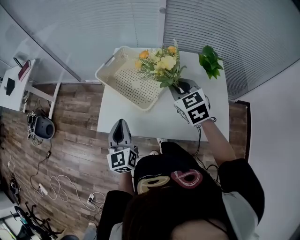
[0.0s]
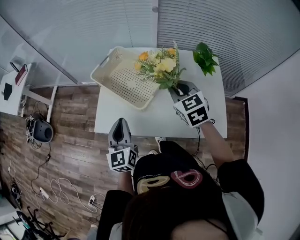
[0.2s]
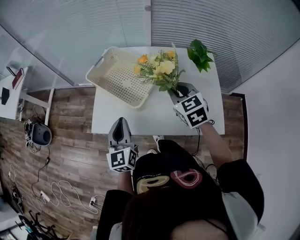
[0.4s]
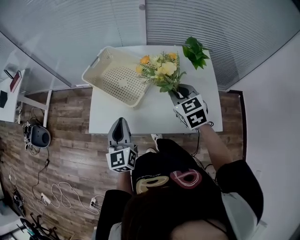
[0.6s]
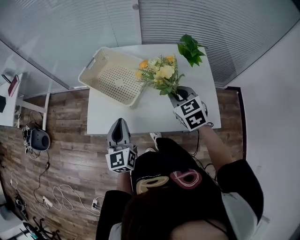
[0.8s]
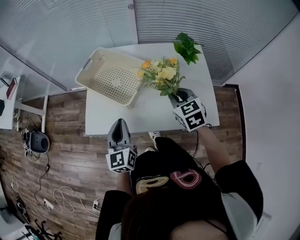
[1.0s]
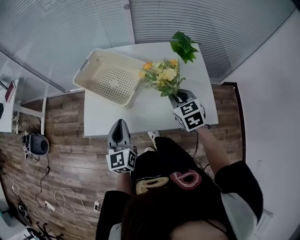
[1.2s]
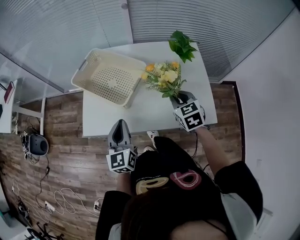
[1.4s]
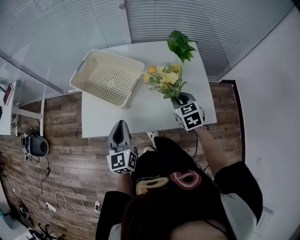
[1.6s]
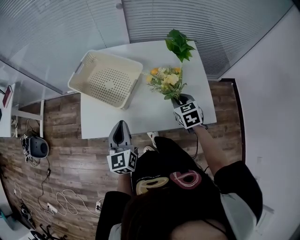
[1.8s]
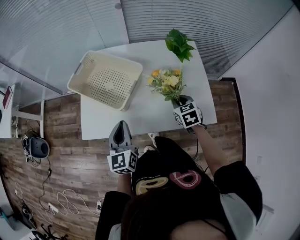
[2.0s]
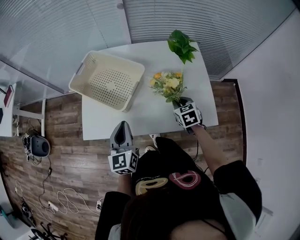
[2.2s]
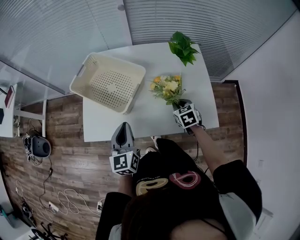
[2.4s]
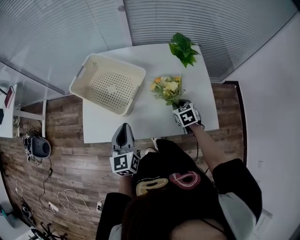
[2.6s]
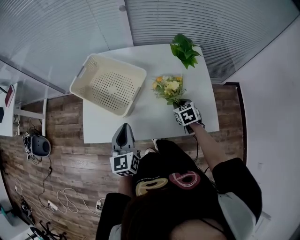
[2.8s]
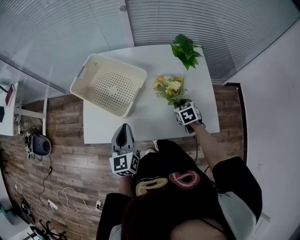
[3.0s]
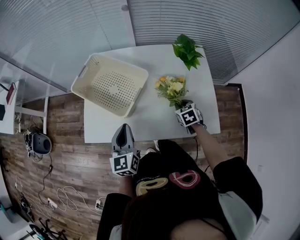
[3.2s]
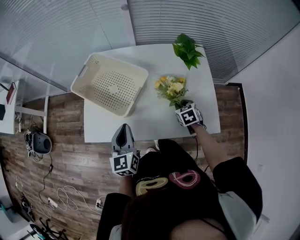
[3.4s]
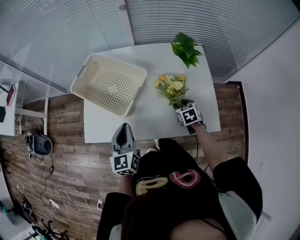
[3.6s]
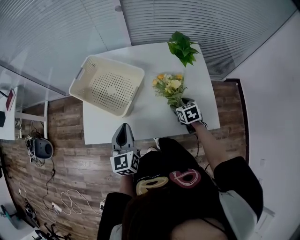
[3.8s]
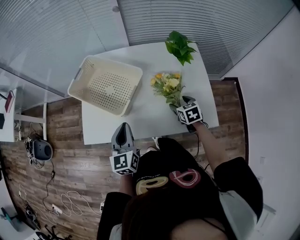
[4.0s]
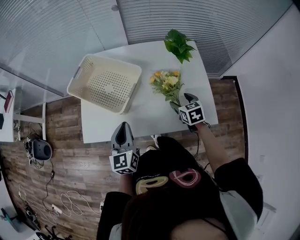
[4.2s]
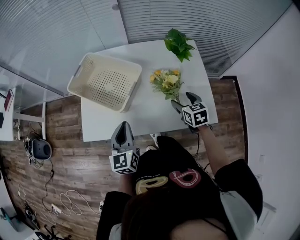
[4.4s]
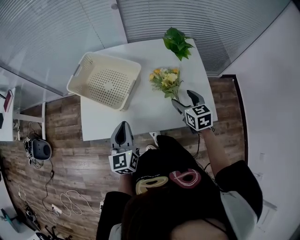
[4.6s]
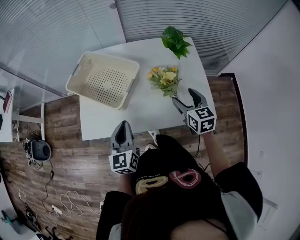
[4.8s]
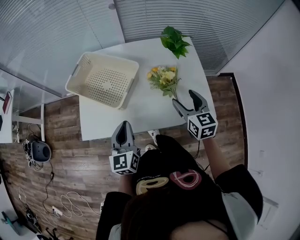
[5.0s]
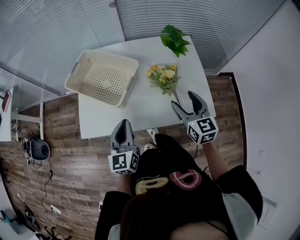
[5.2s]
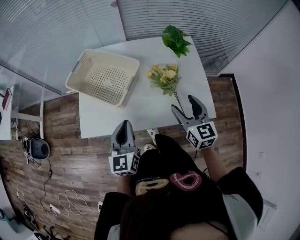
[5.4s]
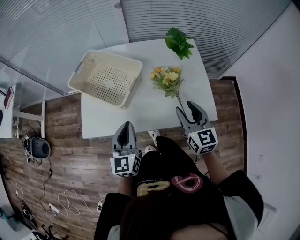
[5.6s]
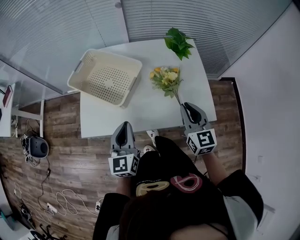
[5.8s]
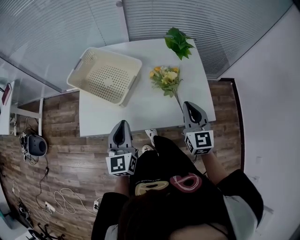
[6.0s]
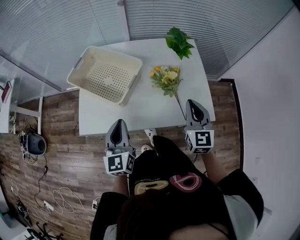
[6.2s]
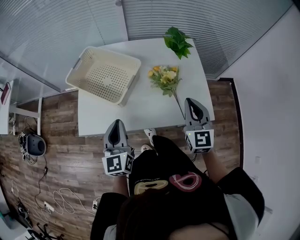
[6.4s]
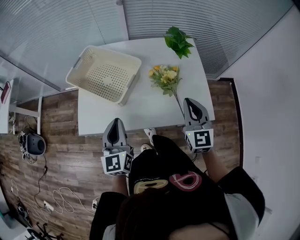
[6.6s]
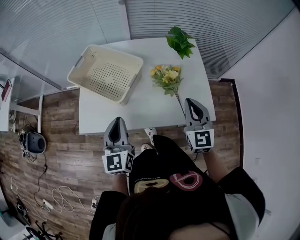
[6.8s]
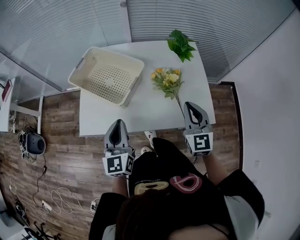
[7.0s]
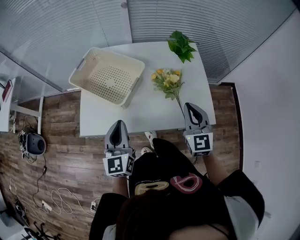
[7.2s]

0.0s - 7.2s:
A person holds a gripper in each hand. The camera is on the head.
0.0s - 1.4s: The left gripper is displaced to the right by approximately 10 cm. Meanwhile the right gripper is displaced to the right, backward and downward by roughly 20 cm.
1.4s - 2.8s: The right gripper shifts approximately 15 cm downward.
2.8s - 4.4s: The right gripper travels upward by some 5 cm, and opens up.
4.4s - 5.8s: The right gripper heads upward and backward, covering some 15 cm, turns by about 30 degrees, and closes its fingers.
5.8s - 7.2s: The grippers move only a little.

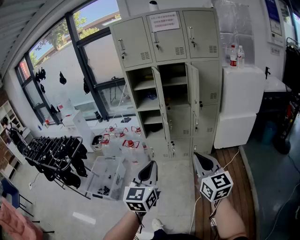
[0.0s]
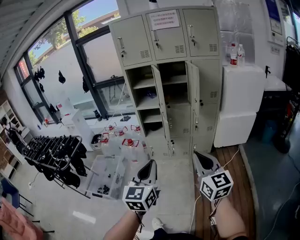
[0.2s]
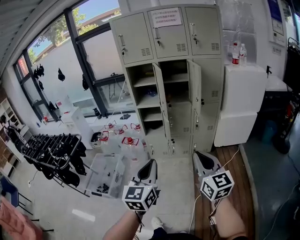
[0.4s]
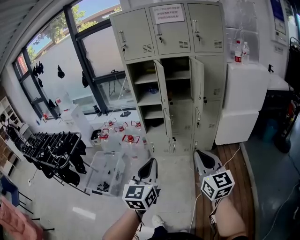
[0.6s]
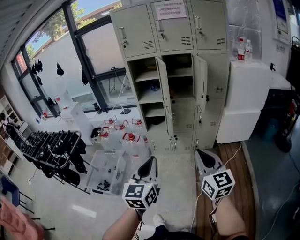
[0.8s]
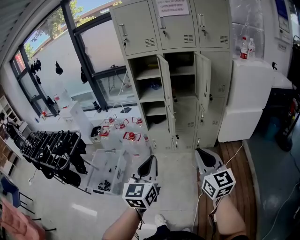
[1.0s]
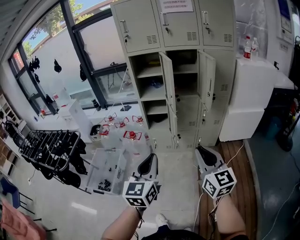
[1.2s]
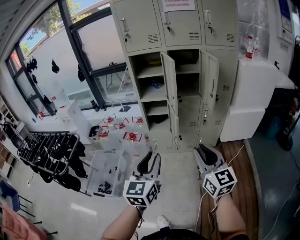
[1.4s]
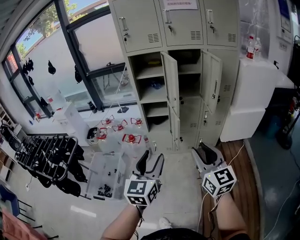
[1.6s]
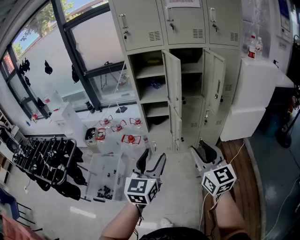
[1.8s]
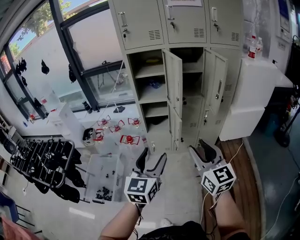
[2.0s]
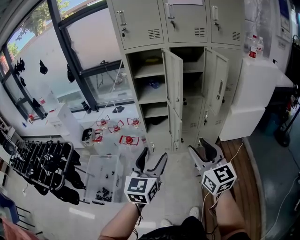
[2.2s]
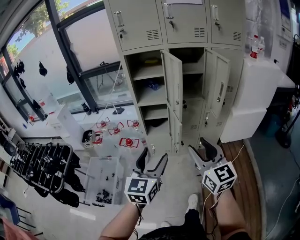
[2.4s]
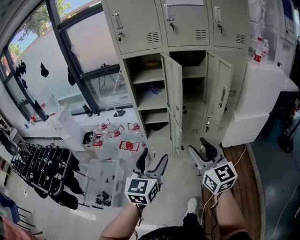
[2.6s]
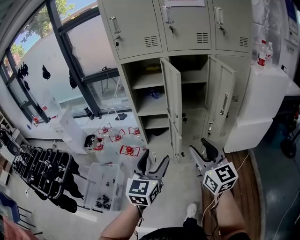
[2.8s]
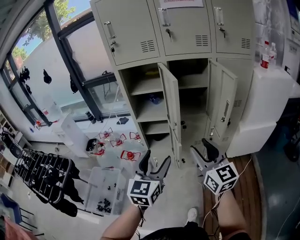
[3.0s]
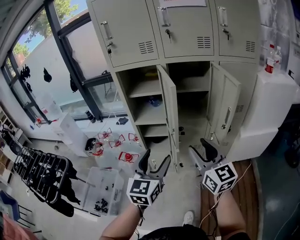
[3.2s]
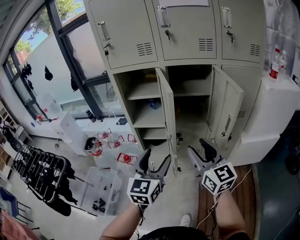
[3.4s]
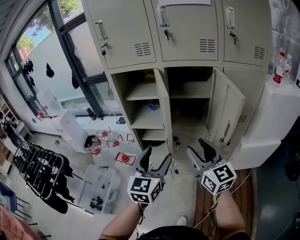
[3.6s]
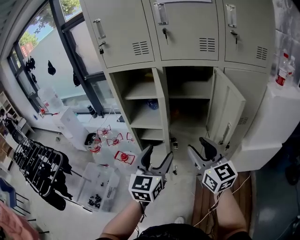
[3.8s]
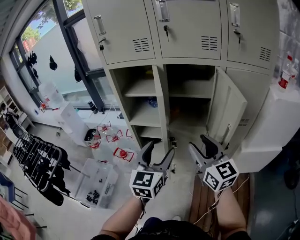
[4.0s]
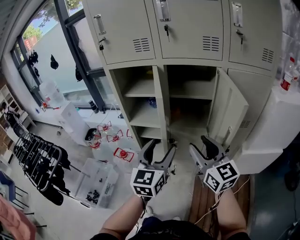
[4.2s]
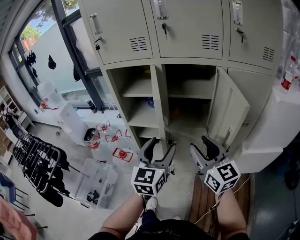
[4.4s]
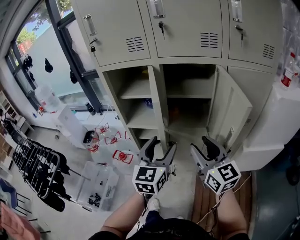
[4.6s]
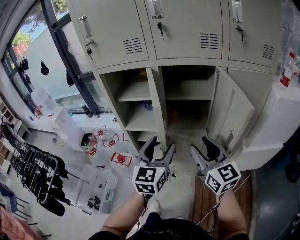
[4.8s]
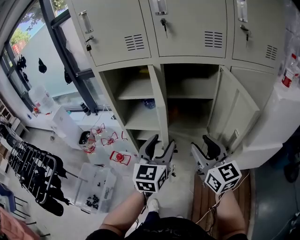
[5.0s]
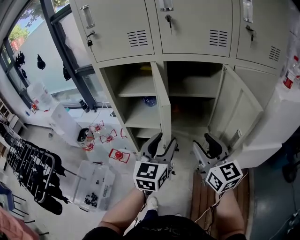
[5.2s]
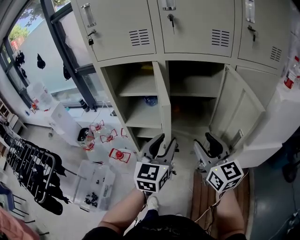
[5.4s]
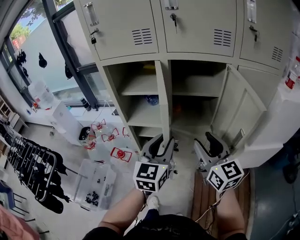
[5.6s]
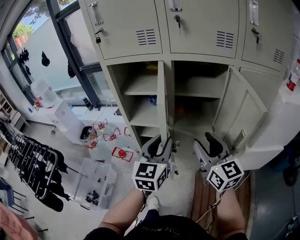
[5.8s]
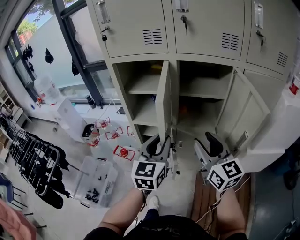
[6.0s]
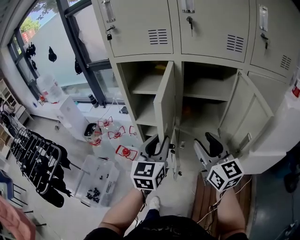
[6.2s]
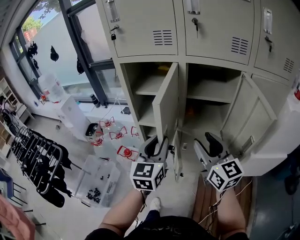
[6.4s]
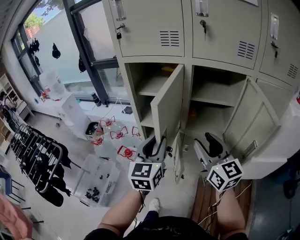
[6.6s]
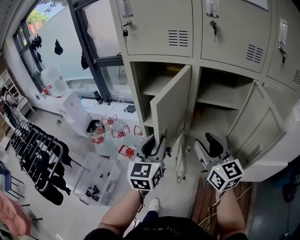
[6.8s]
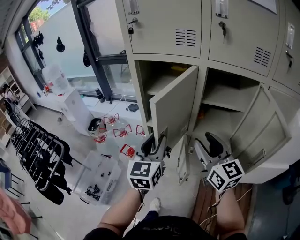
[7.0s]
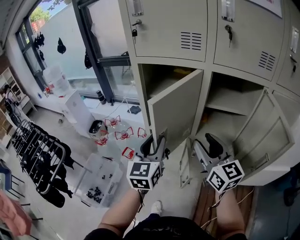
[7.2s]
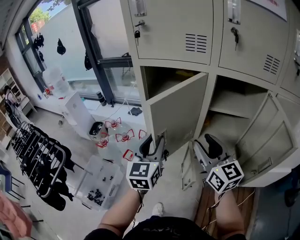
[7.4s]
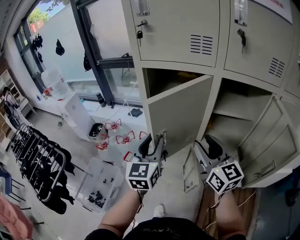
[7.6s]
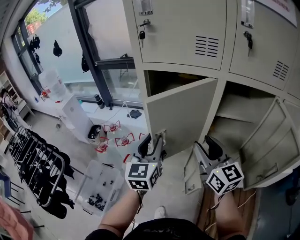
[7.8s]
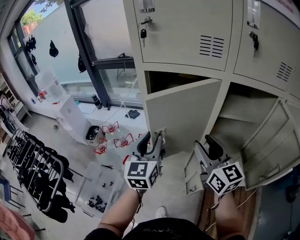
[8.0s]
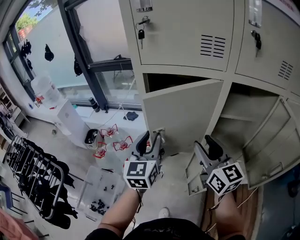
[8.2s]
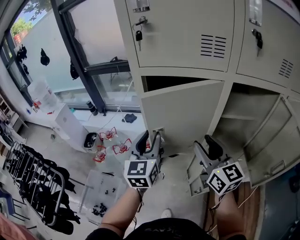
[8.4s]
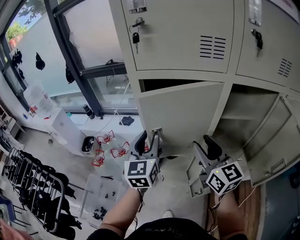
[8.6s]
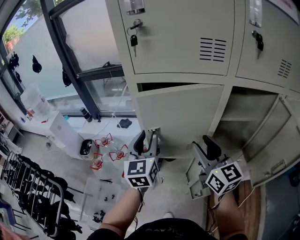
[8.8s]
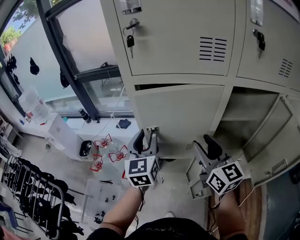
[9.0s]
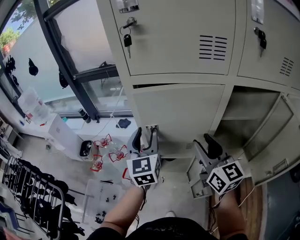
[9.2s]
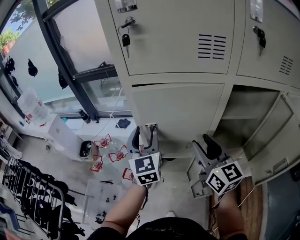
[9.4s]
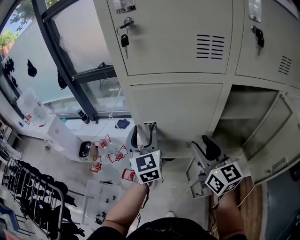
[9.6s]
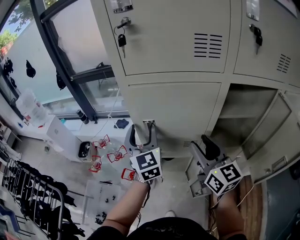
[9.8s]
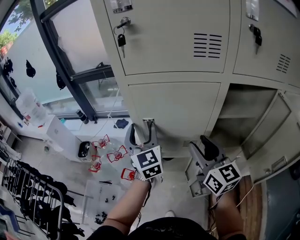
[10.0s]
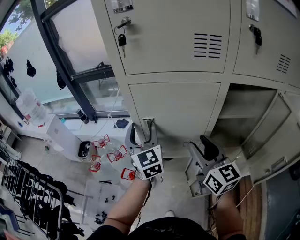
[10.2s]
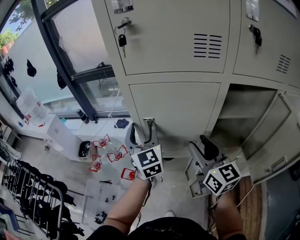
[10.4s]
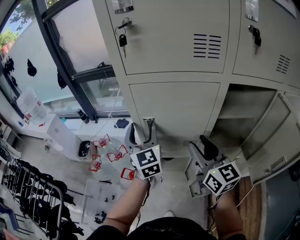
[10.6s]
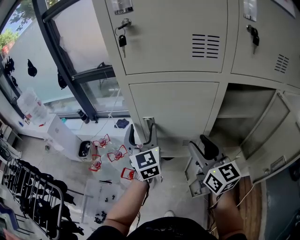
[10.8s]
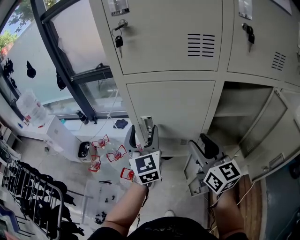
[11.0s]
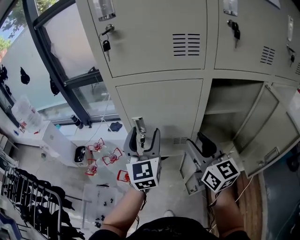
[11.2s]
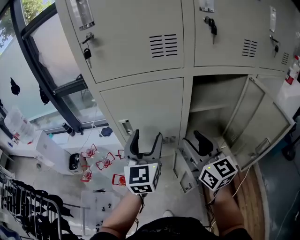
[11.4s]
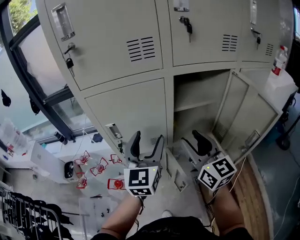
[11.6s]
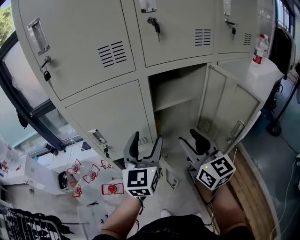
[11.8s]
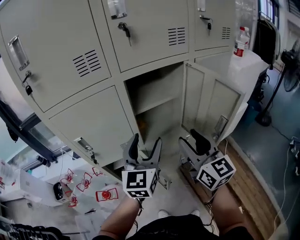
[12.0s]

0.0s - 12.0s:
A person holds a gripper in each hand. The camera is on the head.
0.0s - 1.6s: The two grippers go about 20 cm forward and to the left. The right gripper opens, while the left gripper opens its fingers.
1.6s - 3.0s: The two grippers go some 20 cm forward.
3.0s - 4.4s: Both grippers travel together forward and to the right, about 20 cm.
4.4s - 6.0s: The right gripper shifts by approximately 5 cm. Meanwhile the left gripper moves to the left, about 5 cm, and closes up.
6.0s - 7.6s: The right gripper goes about 15 cm forward and to the left. Meanwhile the left gripper shifts roughly 20 cm to the left and forward.
7.6s - 9.0s: The left gripper goes some 15 cm forward. Meanwhile the right gripper travels forward by about 10 cm.
9.0s - 10.4s: The left gripper opens its fingers.
10.4s - 12.0s: The right gripper shifts by approximately 25 cm, and rotates some 30 degrees. Meanwhile the left gripper shifts by approximately 30 cm, and changes its angle by about 50 degrees.

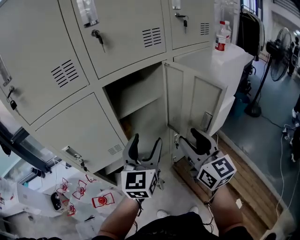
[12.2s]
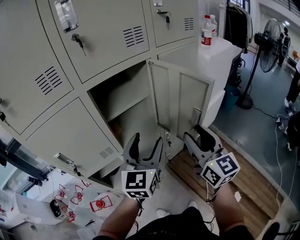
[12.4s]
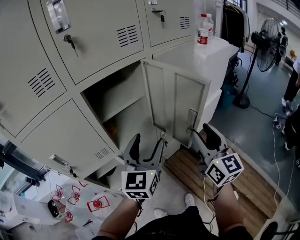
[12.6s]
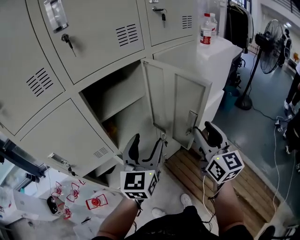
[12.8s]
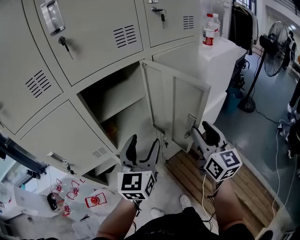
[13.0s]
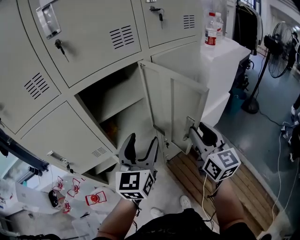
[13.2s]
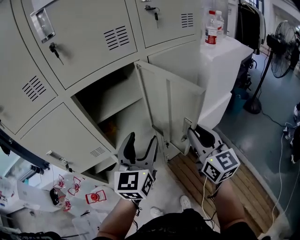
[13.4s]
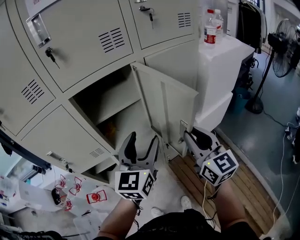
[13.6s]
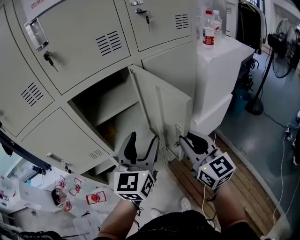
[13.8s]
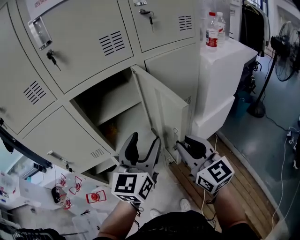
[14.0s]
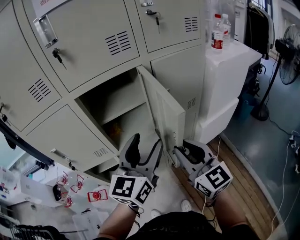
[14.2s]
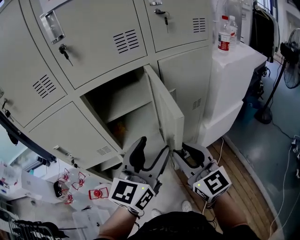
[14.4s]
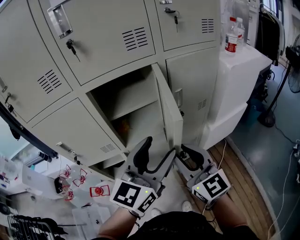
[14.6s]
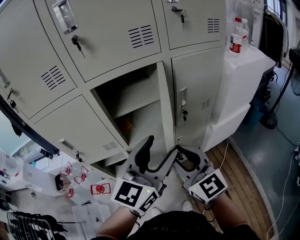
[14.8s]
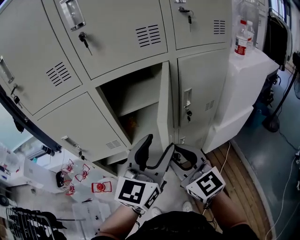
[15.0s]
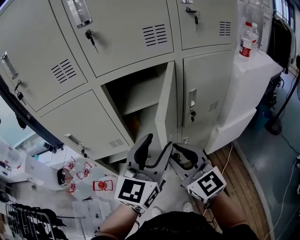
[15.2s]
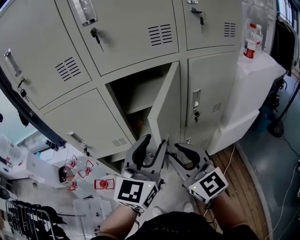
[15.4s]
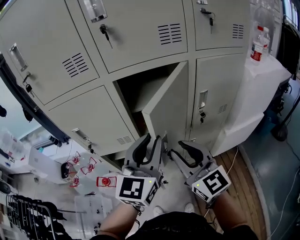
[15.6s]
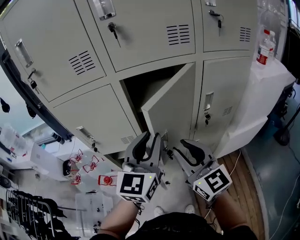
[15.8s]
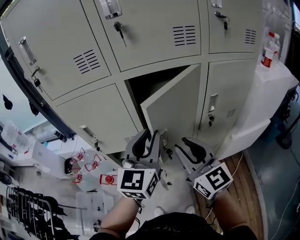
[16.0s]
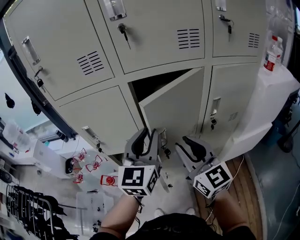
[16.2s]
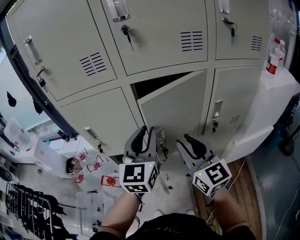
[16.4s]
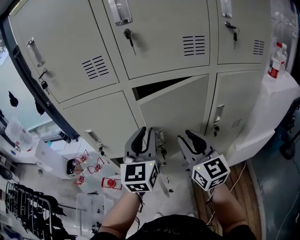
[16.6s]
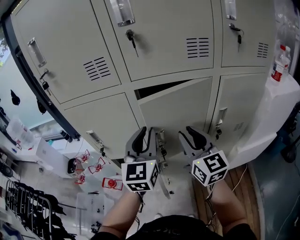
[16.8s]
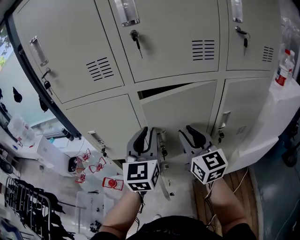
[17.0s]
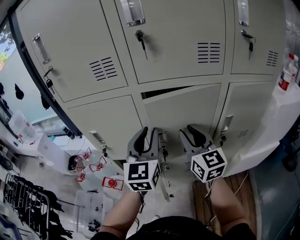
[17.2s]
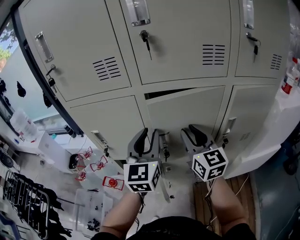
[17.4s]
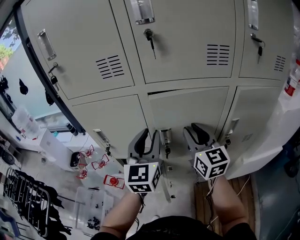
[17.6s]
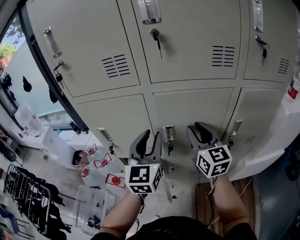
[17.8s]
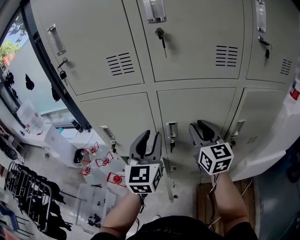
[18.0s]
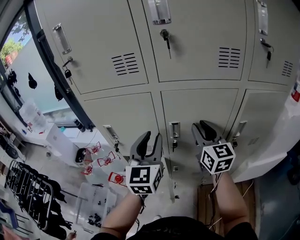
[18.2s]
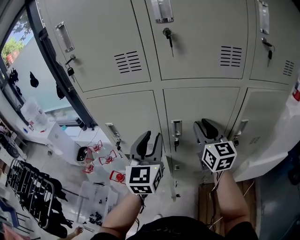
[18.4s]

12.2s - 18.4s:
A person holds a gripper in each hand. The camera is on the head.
12.2s - 13.8s: The grippers both shift to the right by about 10 cm. The right gripper closes.
13.8s - 15.4s: The left gripper travels to the left by about 5 cm; the right gripper heads to the left, covering roughly 15 cm, and rotates approximately 20 degrees.
15.4s - 16.8s: The right gripper moves forward, some 15 cm. The left gripper is displaced forward and to the left by roughly 15 cm, and turns by some 20 degrees.
16.8s - 18.4s: The left gripper shifts roughly 5 cm to the left, while the right gripper shifts some 5 cm forward.
